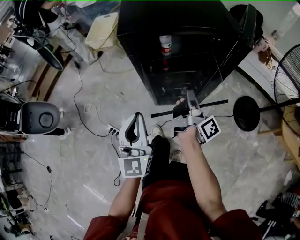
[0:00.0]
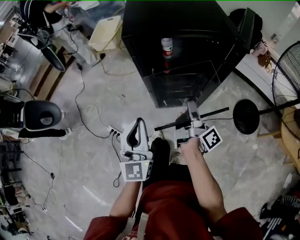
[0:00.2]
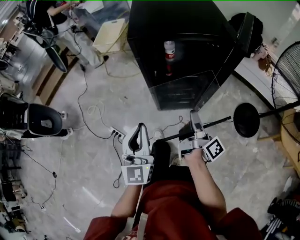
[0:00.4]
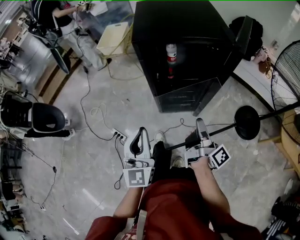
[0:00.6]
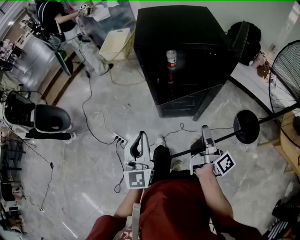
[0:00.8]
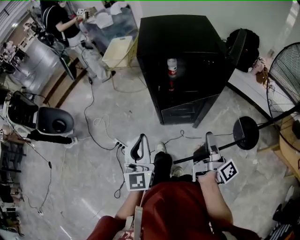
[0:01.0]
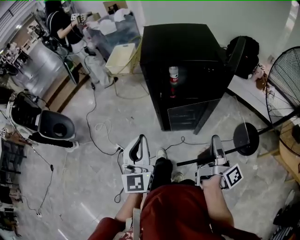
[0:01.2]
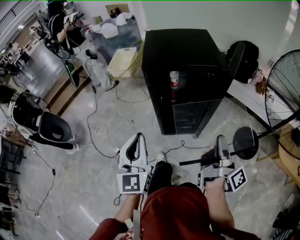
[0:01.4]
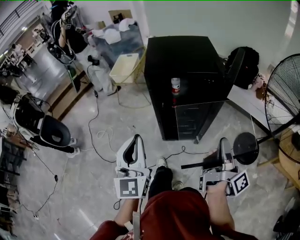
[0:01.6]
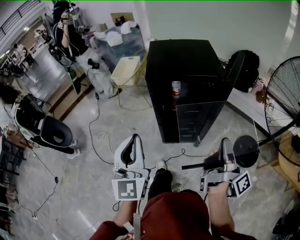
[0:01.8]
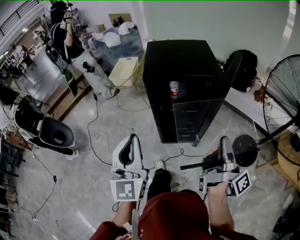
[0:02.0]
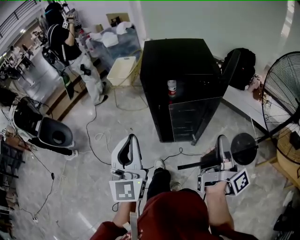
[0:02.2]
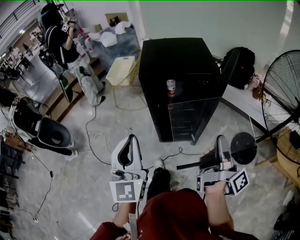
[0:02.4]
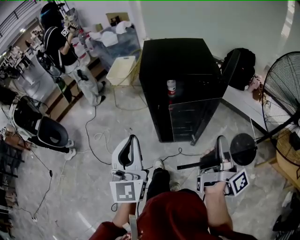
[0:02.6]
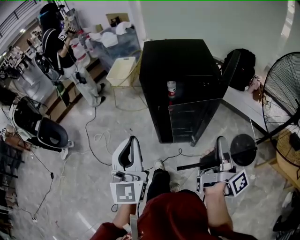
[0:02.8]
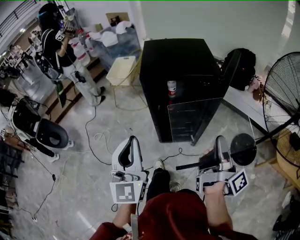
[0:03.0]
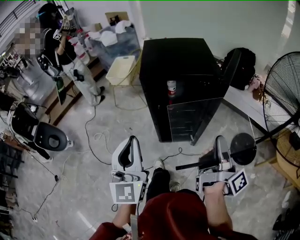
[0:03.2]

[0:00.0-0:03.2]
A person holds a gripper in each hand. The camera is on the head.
0:00.0 to 0:01.6: The right gripper shifts some 25 cm upward, backward and to the right. The left gripper shifts approximately 15 cm upward and backward.
0:01.6 to 0:03.2: There are only small adjustments of the grippers.

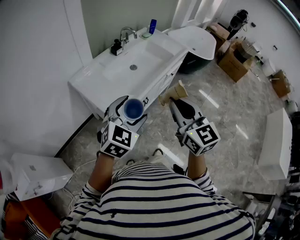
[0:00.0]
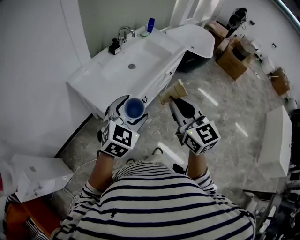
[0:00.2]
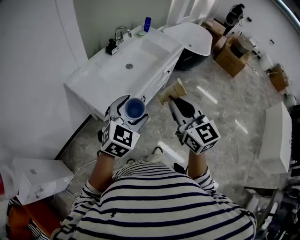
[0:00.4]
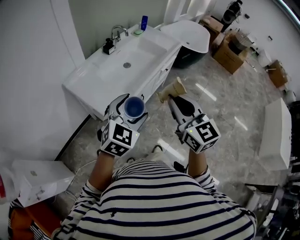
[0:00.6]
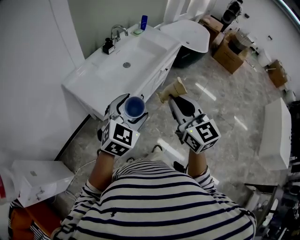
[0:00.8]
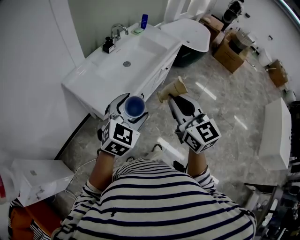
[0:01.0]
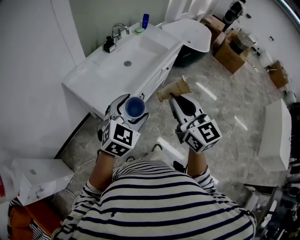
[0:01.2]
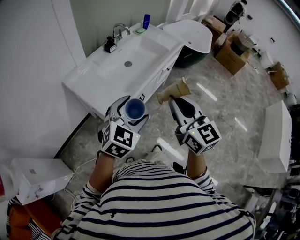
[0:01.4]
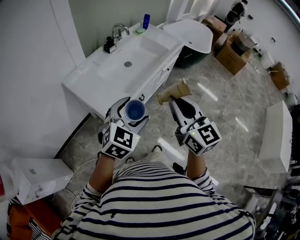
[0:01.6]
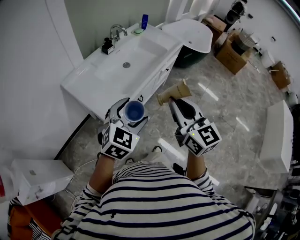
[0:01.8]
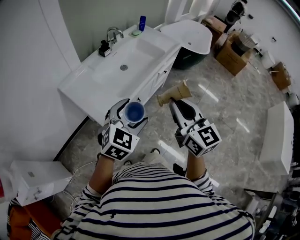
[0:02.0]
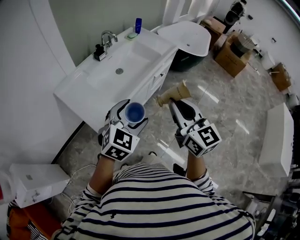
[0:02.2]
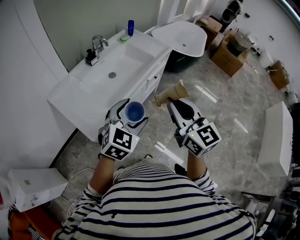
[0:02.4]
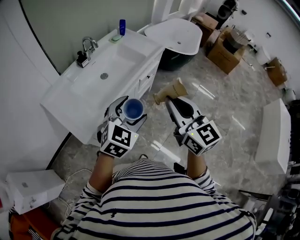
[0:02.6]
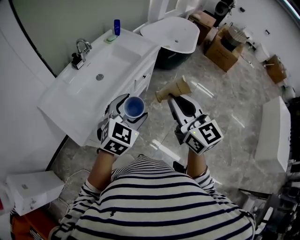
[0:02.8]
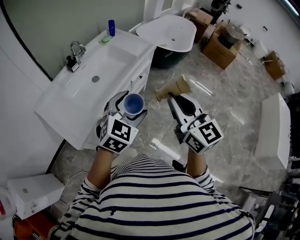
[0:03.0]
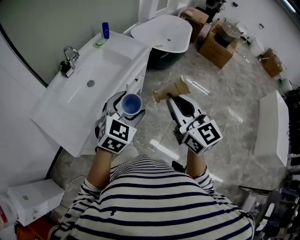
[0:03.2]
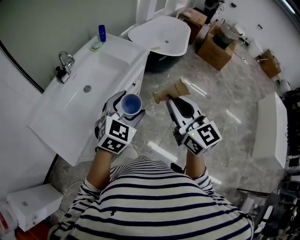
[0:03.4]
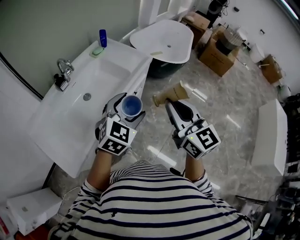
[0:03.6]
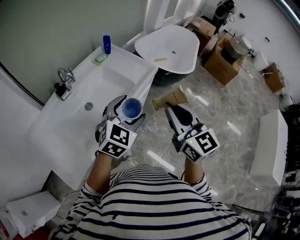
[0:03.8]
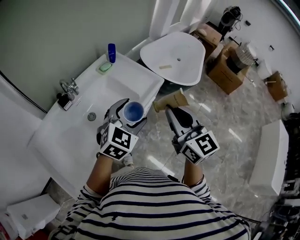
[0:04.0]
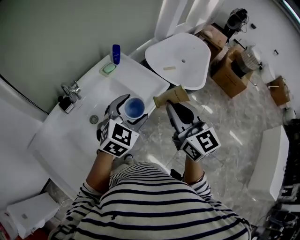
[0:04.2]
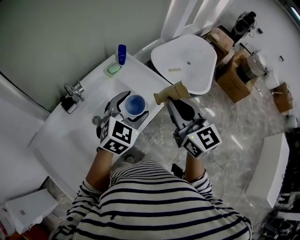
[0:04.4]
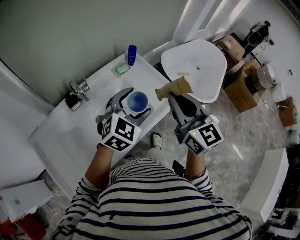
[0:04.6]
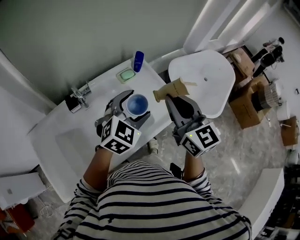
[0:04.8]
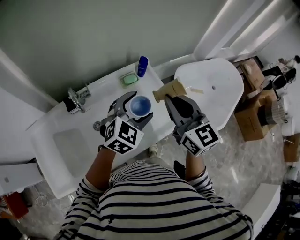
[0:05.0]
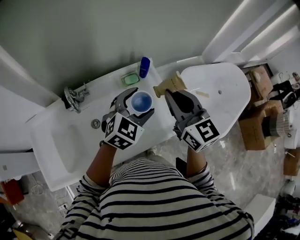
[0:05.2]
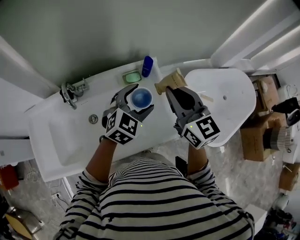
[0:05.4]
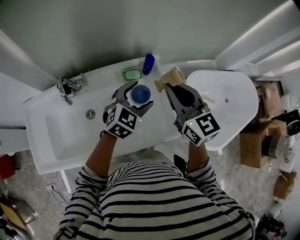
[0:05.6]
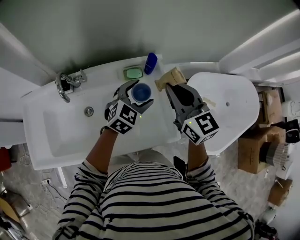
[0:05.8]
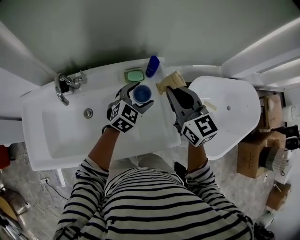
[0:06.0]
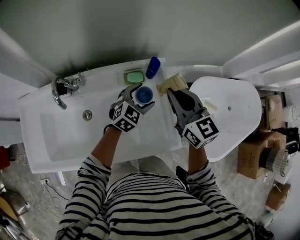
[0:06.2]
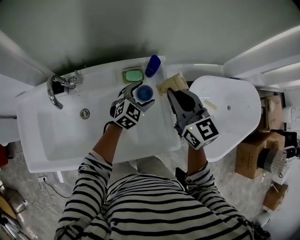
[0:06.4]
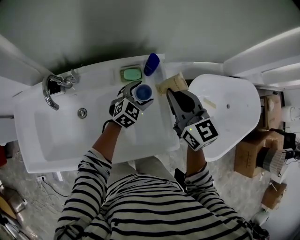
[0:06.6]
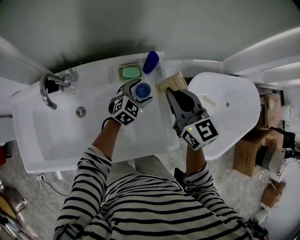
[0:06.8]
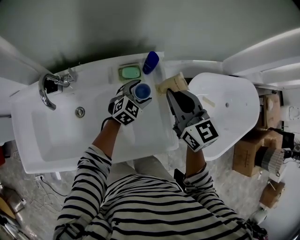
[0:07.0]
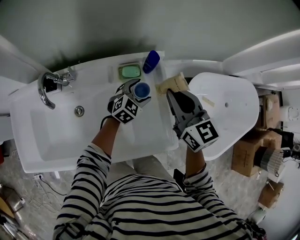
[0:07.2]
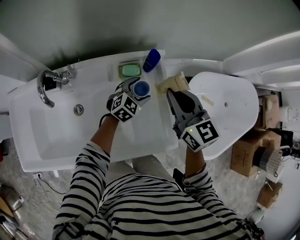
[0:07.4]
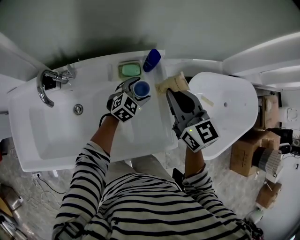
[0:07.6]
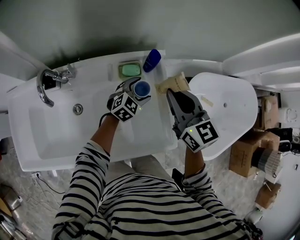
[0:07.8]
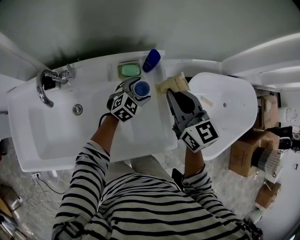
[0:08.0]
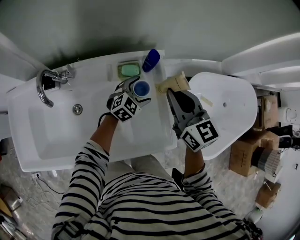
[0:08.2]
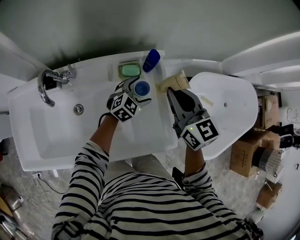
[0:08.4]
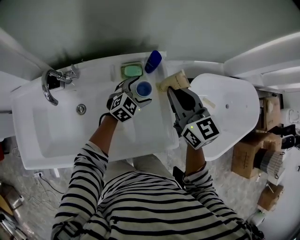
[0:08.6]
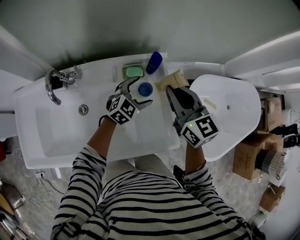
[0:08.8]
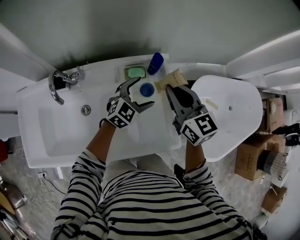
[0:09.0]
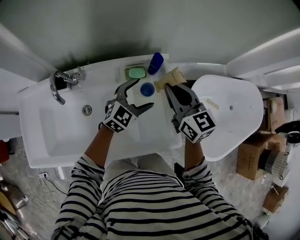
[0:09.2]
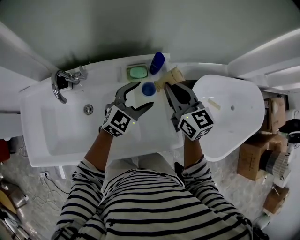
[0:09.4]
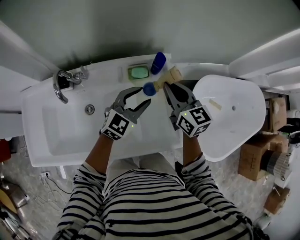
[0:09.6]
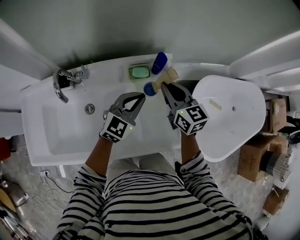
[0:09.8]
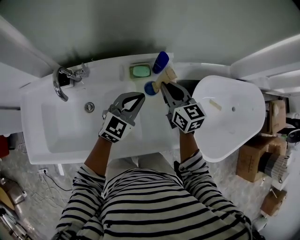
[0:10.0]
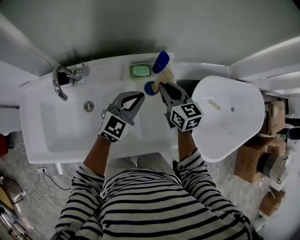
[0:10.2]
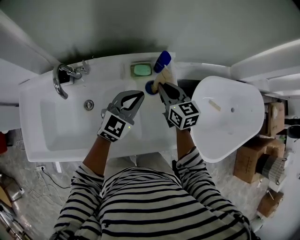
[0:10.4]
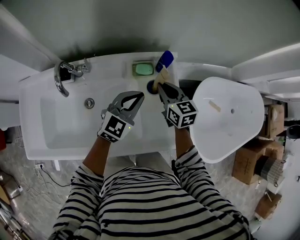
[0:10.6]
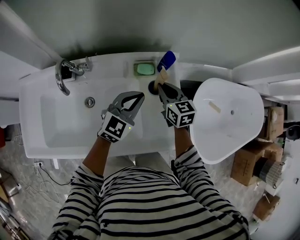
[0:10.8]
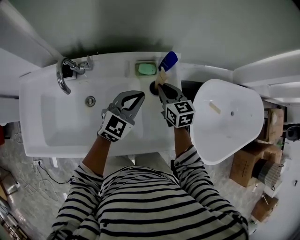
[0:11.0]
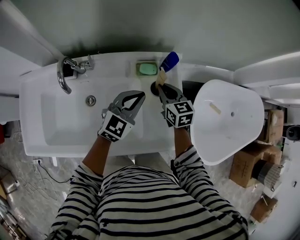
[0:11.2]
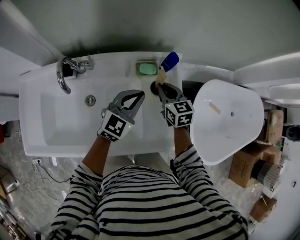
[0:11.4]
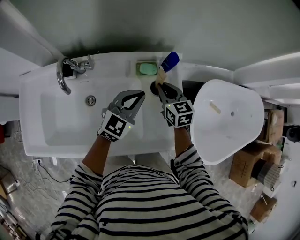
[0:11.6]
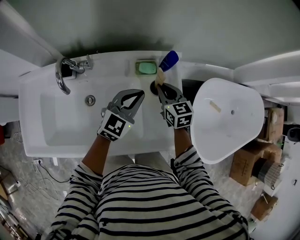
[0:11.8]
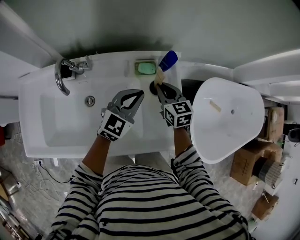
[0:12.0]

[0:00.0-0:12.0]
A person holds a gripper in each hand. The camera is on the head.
0:00.0 to 0:01.6: There are only small adjustments of the grippers.
0:01.6 to 0:03.0: The grippers both shift to the right and forward by approximately 25 cm.
0:03.0 to 0:04.4: Both grippers are carried forward, approximately 40 cm.
0:04.4 to 0:06.0: The left gripper shifts by some 35 cm, and turns by about 30 degrees. Meanwhile the right gripper changes place by some 35 cm, and turns by some 40 degrees.
0:06.0 to 0:07.6: The left gripper is displaced downward by roughly 10 cm. Meanwhile the right gripper moves about 5 cm.
0:07.6 to 0:09.0: The left gripper goes some 10 cm upward.
0:09.0 to 0:10.4: The left gripper shifts by approximately 10 cm, and closes up. Meanwhile the right gripper is displaced downward by roughly 10 cm.
0:10.4 to 0:12.0: The grippers move only a little.

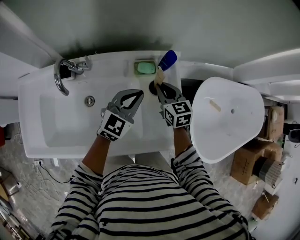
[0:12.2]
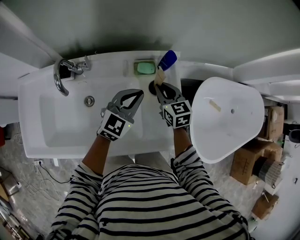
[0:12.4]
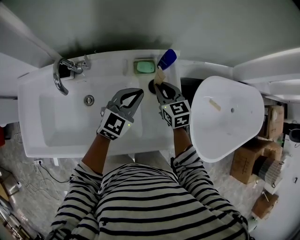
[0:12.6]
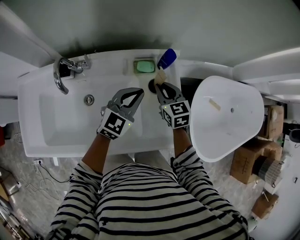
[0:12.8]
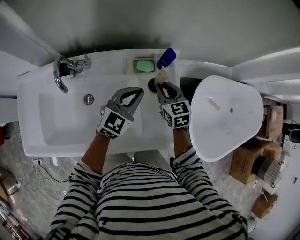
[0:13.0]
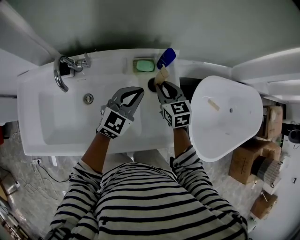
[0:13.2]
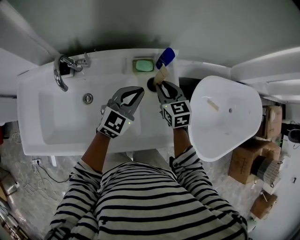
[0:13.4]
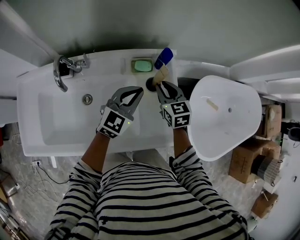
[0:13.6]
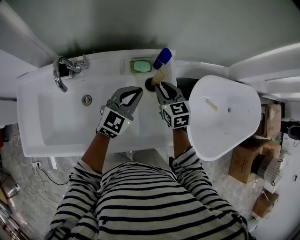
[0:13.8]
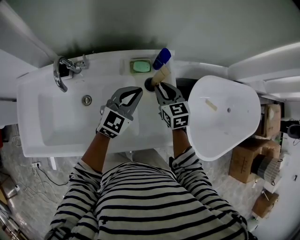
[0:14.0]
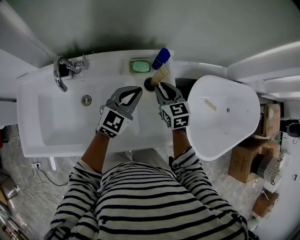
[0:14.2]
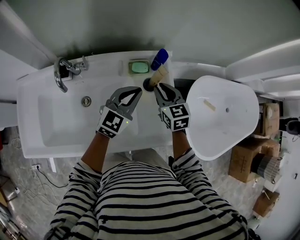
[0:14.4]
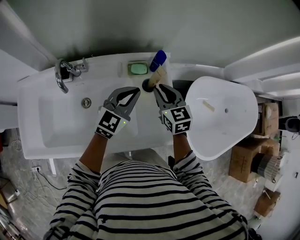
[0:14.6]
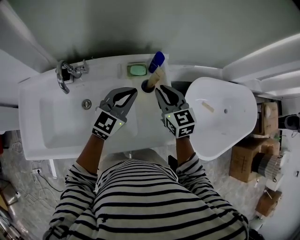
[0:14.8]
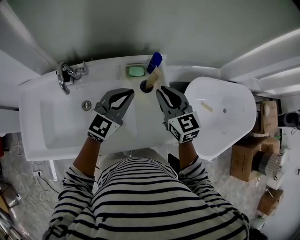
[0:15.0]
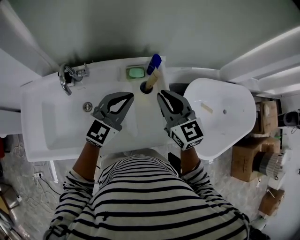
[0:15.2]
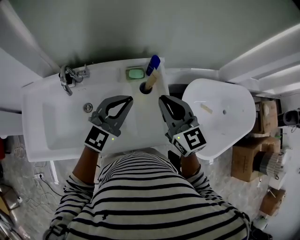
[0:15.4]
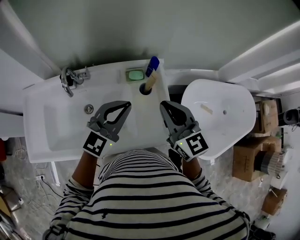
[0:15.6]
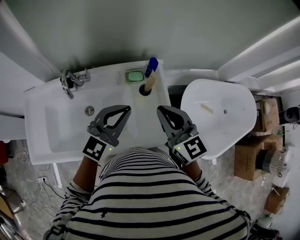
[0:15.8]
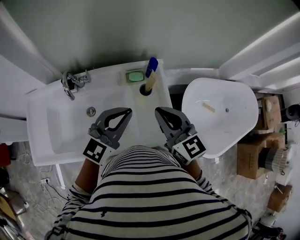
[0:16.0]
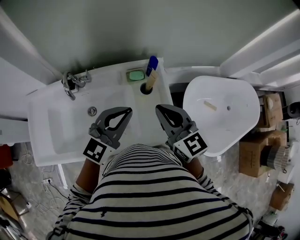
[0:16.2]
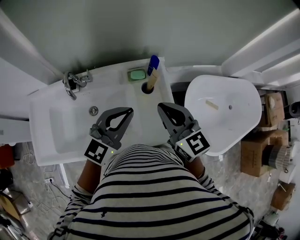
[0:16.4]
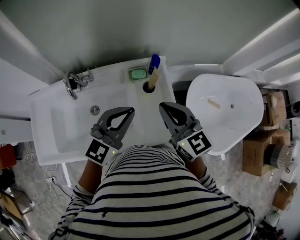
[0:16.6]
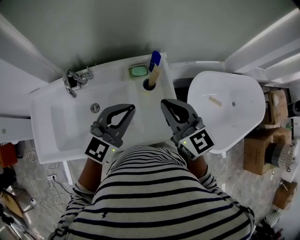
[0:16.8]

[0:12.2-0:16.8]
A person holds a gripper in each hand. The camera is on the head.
0:12.2 to 0:13.8: The grippers stay close to where they were, moving slightly.
0:13.8 to 0:15.2: The left gripper heads upward, covering roughly 10 cm, while the right gripper shifts roughly 20 cm upward and backward.
0:15.2 to 0:16.8: Both grippers travel together backward, approximately 5 cm.

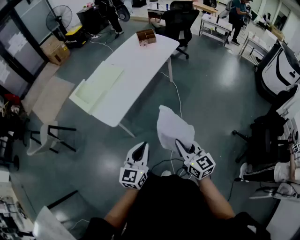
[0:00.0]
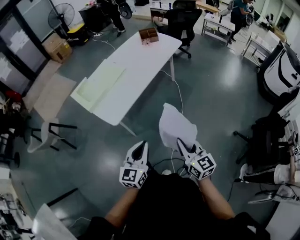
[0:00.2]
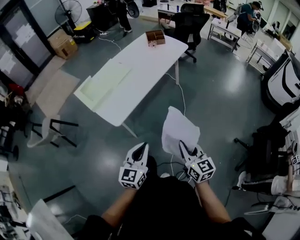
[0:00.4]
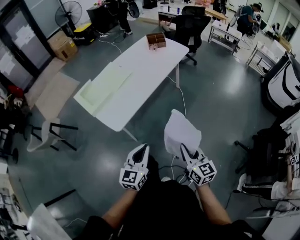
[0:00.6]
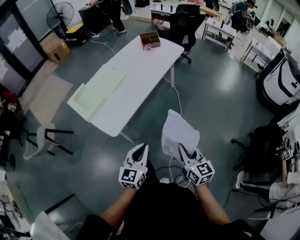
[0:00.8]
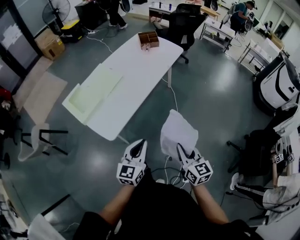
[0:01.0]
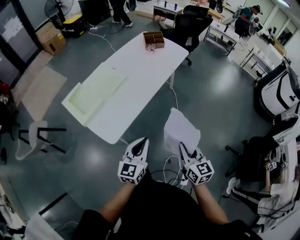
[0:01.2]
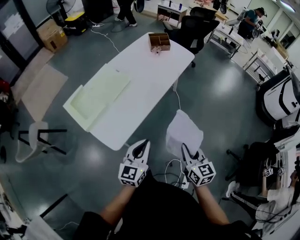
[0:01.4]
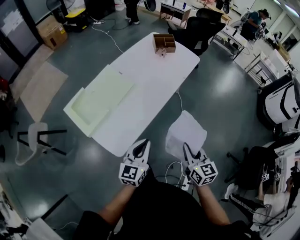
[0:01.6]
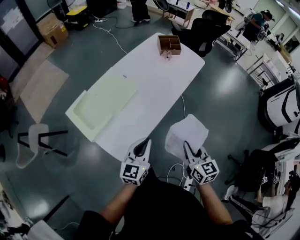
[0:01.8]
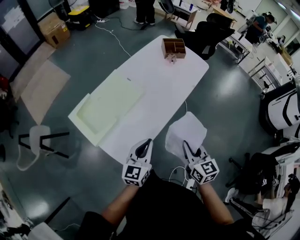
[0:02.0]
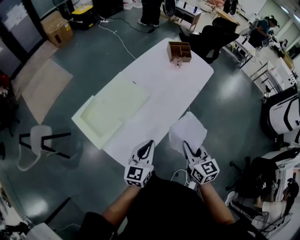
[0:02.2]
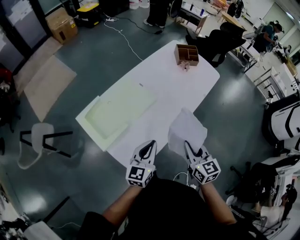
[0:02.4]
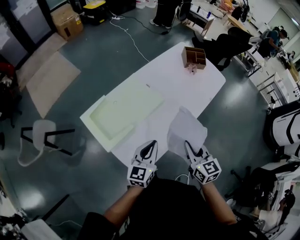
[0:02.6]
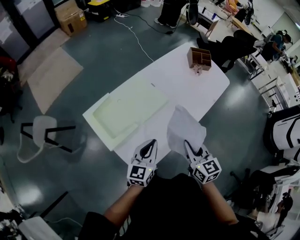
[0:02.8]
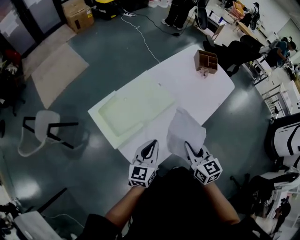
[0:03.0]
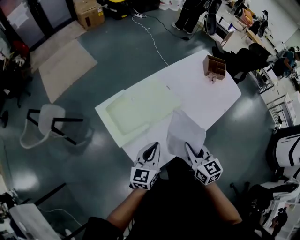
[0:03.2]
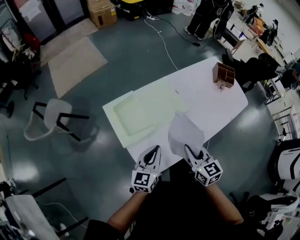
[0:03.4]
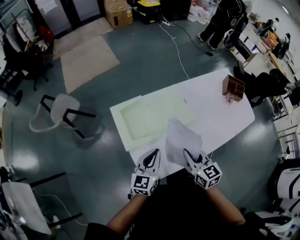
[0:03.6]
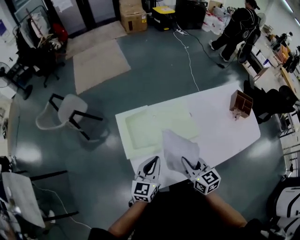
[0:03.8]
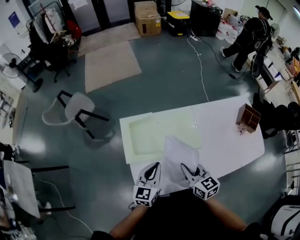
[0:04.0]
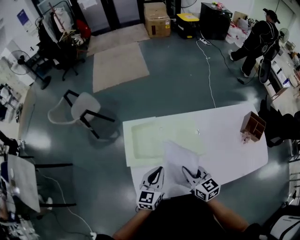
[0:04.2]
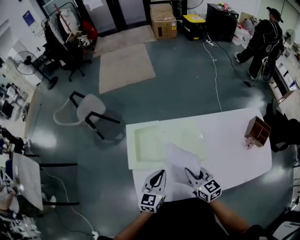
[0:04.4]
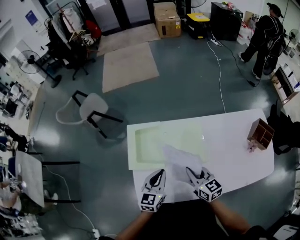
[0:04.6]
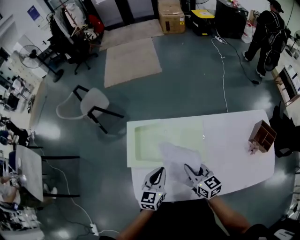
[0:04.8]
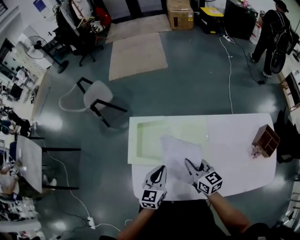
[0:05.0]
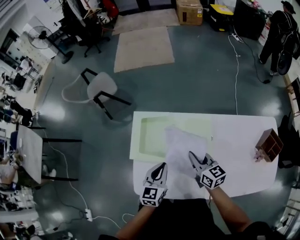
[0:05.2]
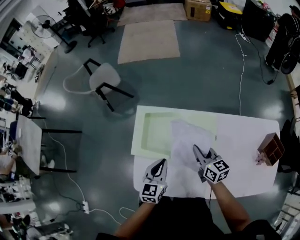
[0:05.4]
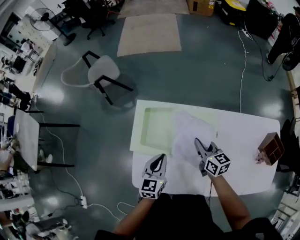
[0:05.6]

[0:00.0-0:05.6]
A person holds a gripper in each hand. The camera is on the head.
0:00.0 to 0:01.4: The two grippers go some 25 cm forward.
0:01.4 to 0:02.8: The two grippers go approximately 30 cm forward and to the left.
0:02.8 to 0:04.2: The left gripper changes place by some 10 cm, and swivels approximately 40 degrees. Meanwhile the right gripper moves about 20 cm, and rotates some 50 degrees.
0:04.2 to 0:05.6: The right gripper travels forward and downward by roughly 20 cm. Meanwhile the left gripper is displaced downward and forward by roughly 10 cm.
